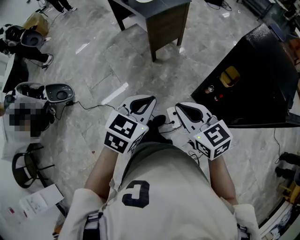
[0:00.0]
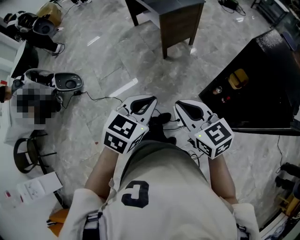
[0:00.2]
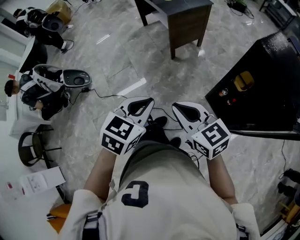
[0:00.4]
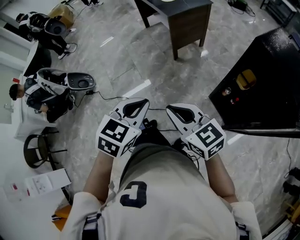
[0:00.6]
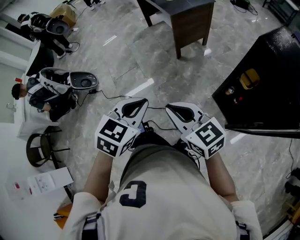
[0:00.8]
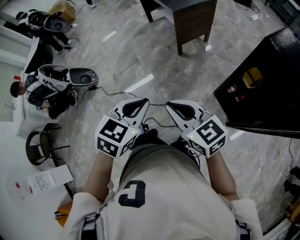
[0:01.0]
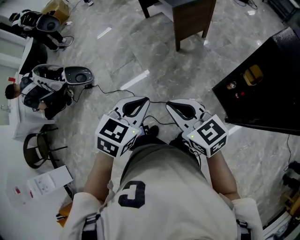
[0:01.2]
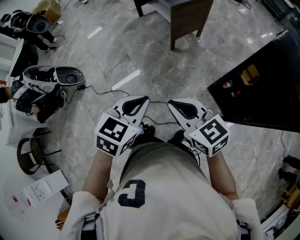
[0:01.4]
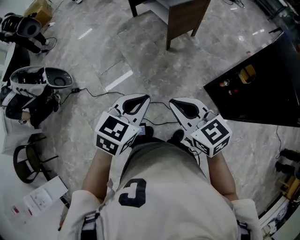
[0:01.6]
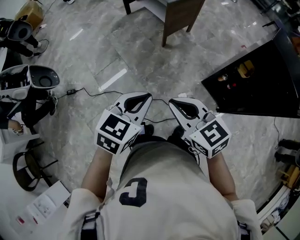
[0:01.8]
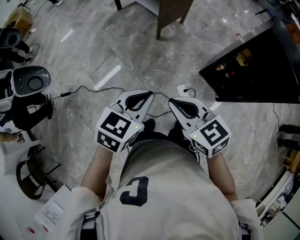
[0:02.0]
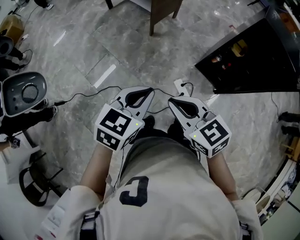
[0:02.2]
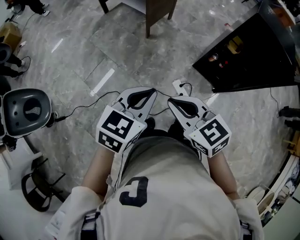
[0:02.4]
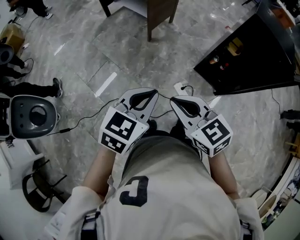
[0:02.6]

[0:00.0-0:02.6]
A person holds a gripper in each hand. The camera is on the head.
0:00.0 to 0:01.2: The two grippers go approximately 10 cm to the left.
0:01.2 to 0:02.6: Both grippers move to the left, approximately 10 cm. The left gripper changes its angle by some 30 degrees, while the right gripper turns by about 20 degrees.

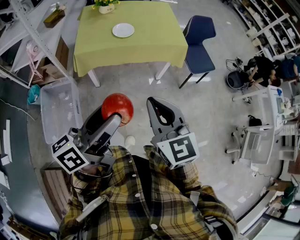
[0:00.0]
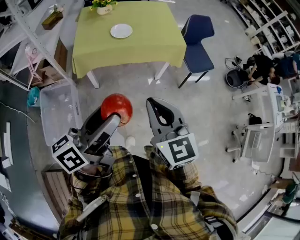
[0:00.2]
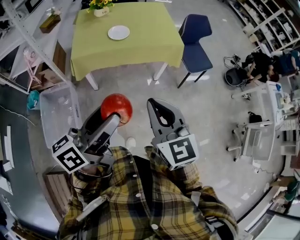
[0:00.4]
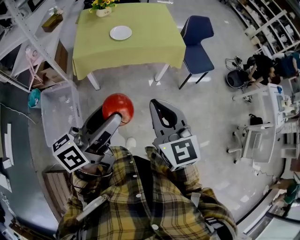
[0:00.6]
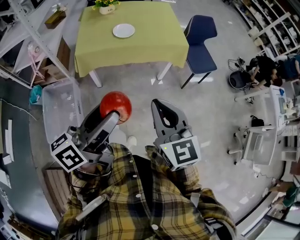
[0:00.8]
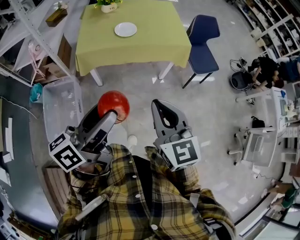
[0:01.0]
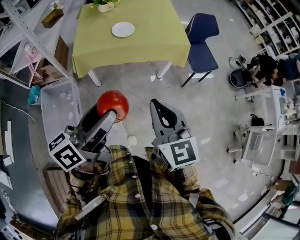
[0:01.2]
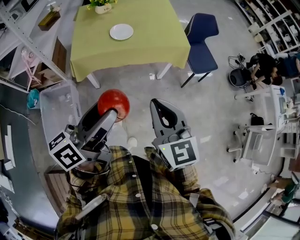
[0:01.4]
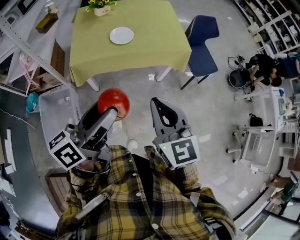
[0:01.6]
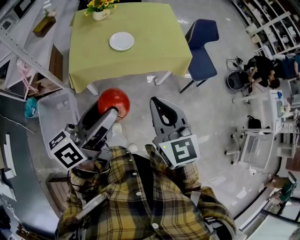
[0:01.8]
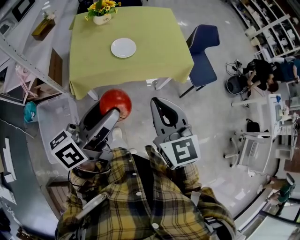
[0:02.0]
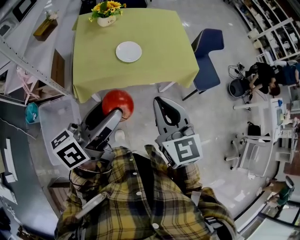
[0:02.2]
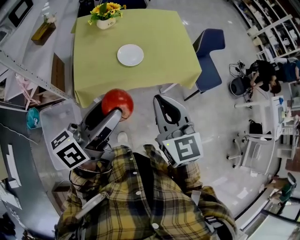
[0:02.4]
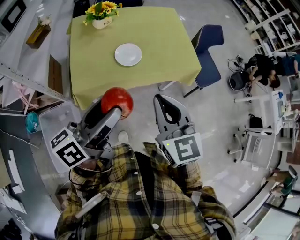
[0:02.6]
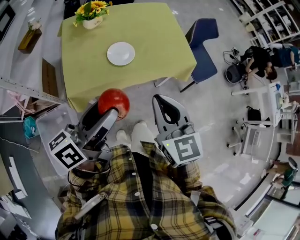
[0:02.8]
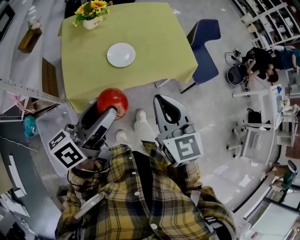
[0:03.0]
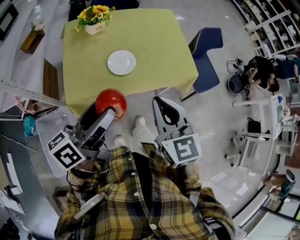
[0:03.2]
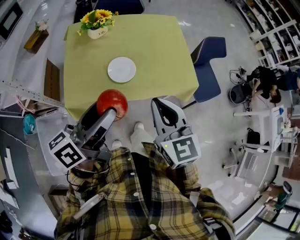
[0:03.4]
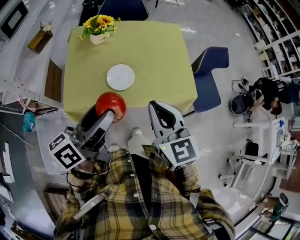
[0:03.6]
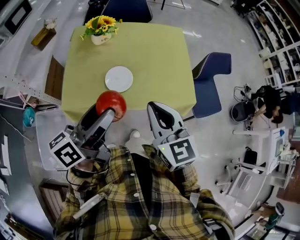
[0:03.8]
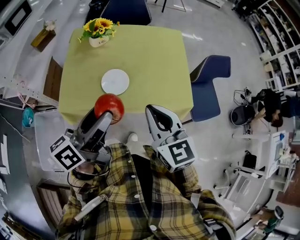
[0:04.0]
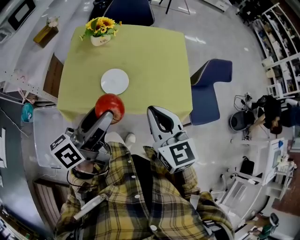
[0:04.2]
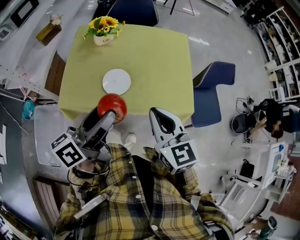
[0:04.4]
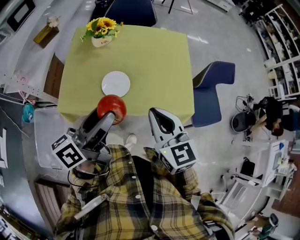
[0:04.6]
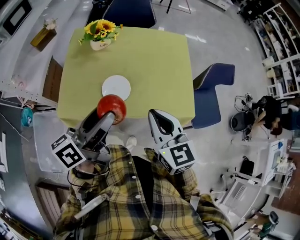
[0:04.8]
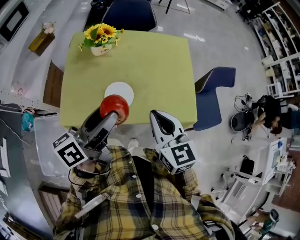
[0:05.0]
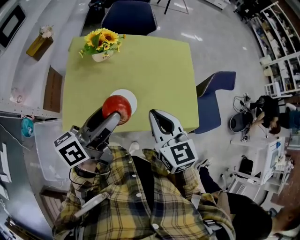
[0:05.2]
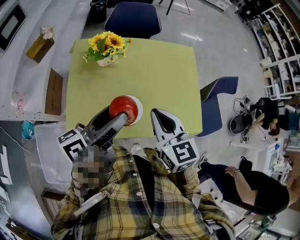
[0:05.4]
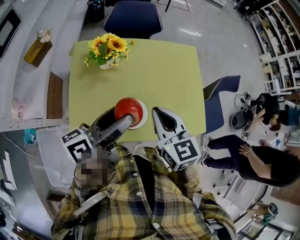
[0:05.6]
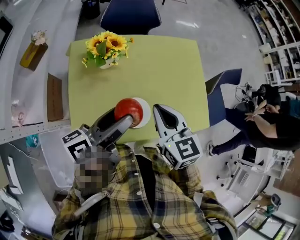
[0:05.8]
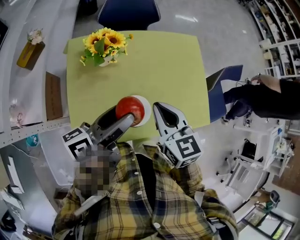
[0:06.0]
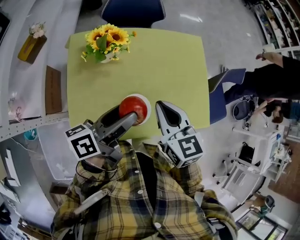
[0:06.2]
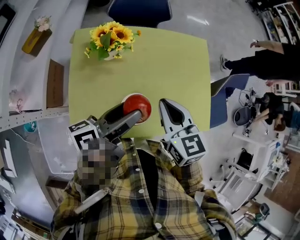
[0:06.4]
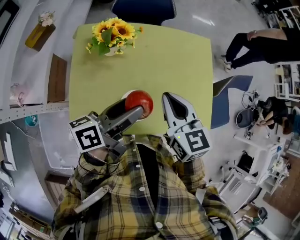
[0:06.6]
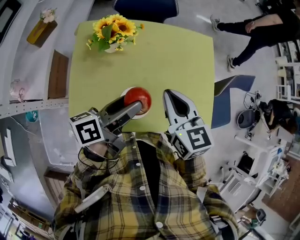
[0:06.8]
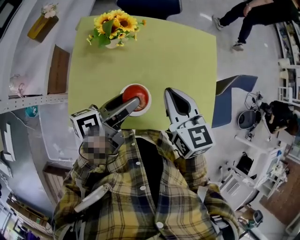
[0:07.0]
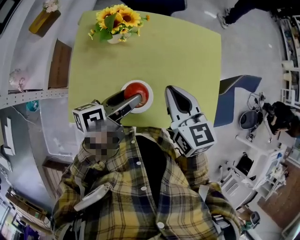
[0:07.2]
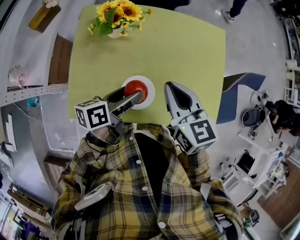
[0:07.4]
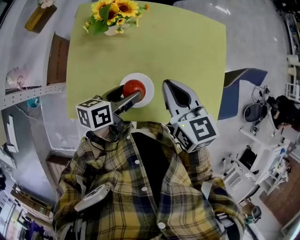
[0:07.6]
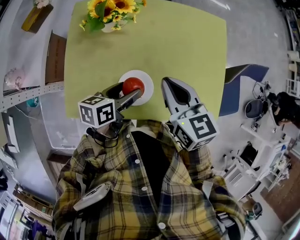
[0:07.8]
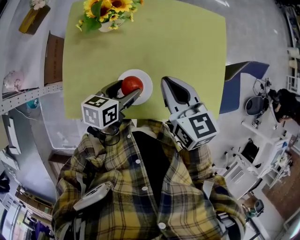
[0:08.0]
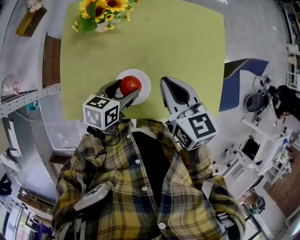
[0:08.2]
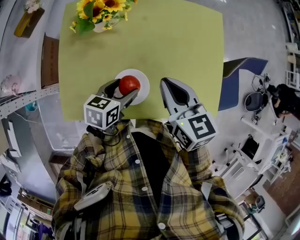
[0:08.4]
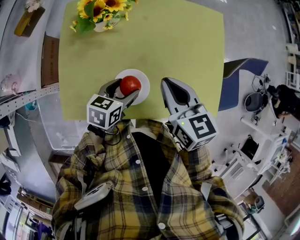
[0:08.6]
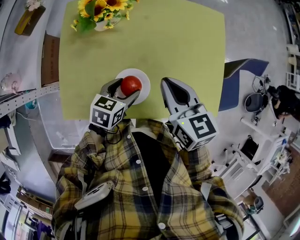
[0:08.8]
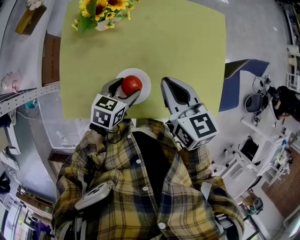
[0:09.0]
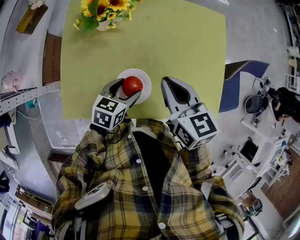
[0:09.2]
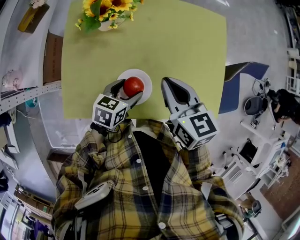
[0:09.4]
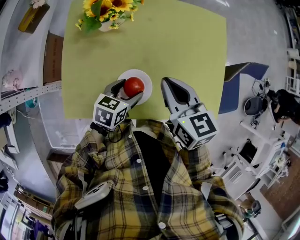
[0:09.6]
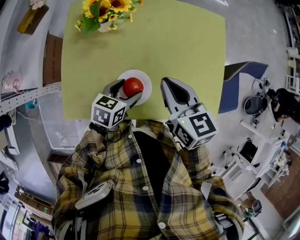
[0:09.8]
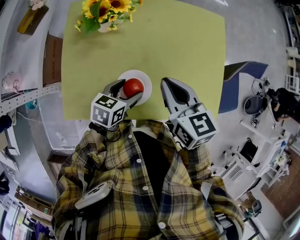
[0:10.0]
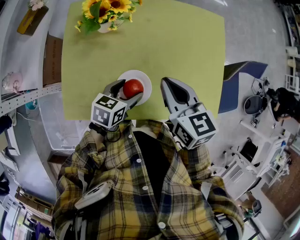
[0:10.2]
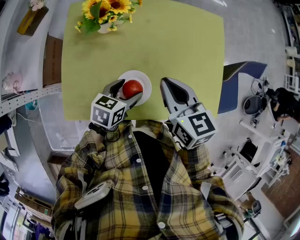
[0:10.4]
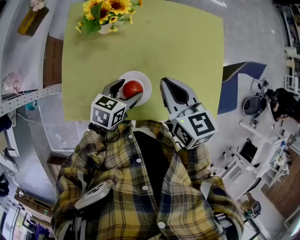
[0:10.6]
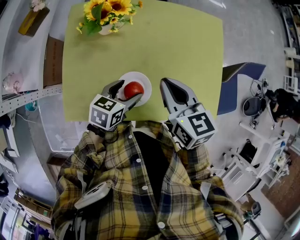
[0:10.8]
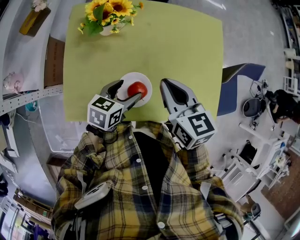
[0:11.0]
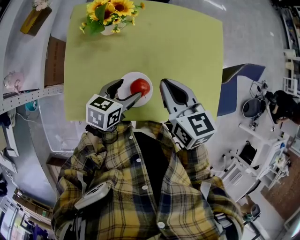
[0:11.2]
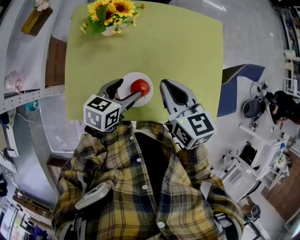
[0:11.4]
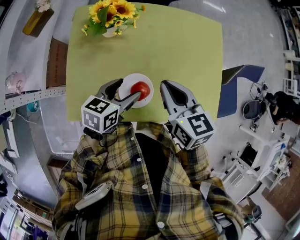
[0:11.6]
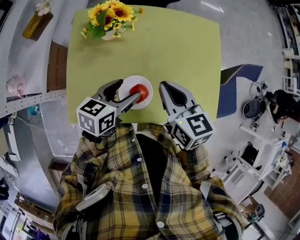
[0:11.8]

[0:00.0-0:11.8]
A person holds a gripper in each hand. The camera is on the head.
0:00.0 to 0:01.4: The two grippers go about 5 cm forward.
0:01.4 to 0:03.0: Both grippers move forward and to the left, about 25 cm.
0:03.0 to 0:04.4: Both grippers travel together forward and to the right, roughly 15 cm. The right gripper swivels roughly 20 degrees.
0:04.4 to 0:06.0: Both grippers move forward and to the left, roughly 25 cm. The left gripper turns by roughly 20 degrees.
0:06.0 to 0:07.4: The right gripper changes place by some 5 cm, while the left gripper goes approximately 15 cm downward, and changes its angle by about 20 degrees.
0:07.4 to 0:08.8: The left gripper travels downward by some 10 cm, and swivels roughly 40 degrees.
0:08.8 to 0:10.4: The grippers move only a little.
0:10.4 to 0:11.8: The left gripper travels upward by approximately 10 cm.

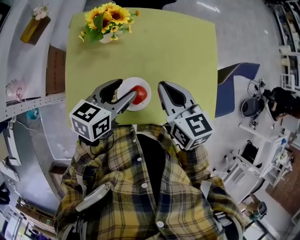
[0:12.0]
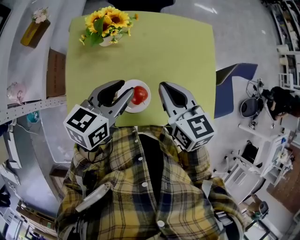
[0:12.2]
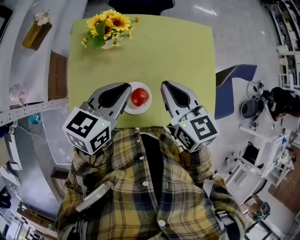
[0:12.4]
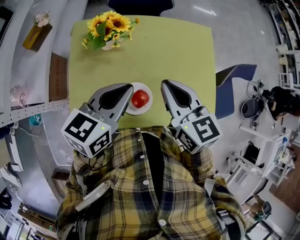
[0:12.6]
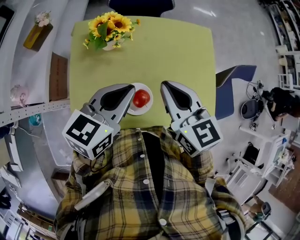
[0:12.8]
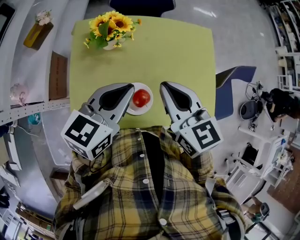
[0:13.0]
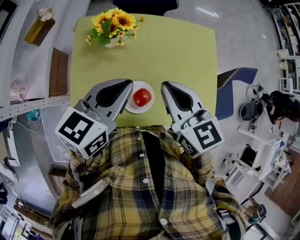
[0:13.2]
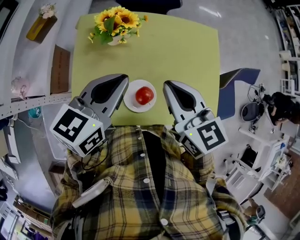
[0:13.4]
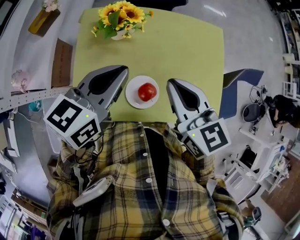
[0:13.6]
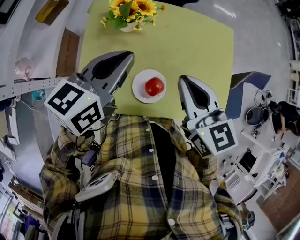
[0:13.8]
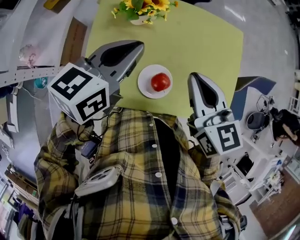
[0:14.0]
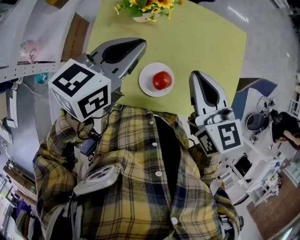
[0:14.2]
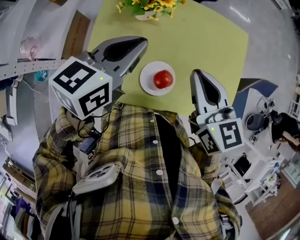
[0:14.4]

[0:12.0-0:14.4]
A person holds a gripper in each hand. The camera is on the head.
0:12.0 to 0:13.2: The left gripper heads upward, covering some 10 cm, and closes up. The right gripper moves upward, approximately 5 cm.
0:13.2 to 0:14.4: The left gripper travels to the left by approximately 5 cm.

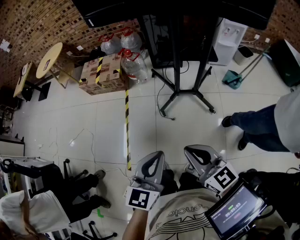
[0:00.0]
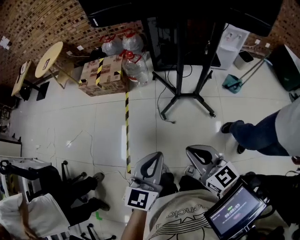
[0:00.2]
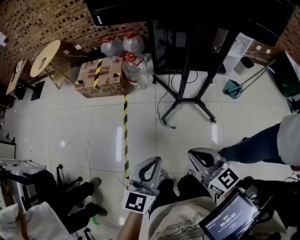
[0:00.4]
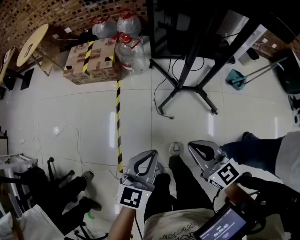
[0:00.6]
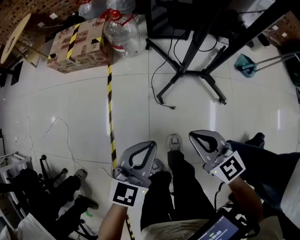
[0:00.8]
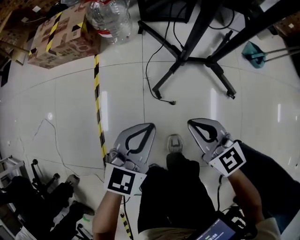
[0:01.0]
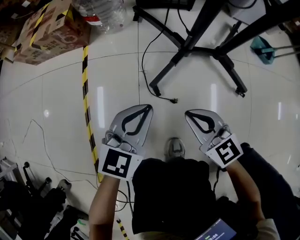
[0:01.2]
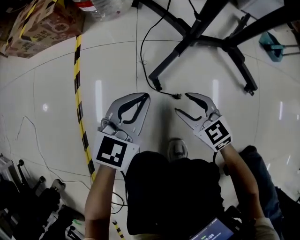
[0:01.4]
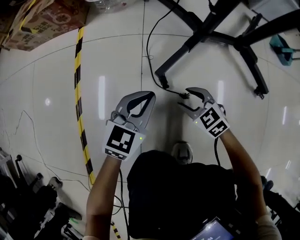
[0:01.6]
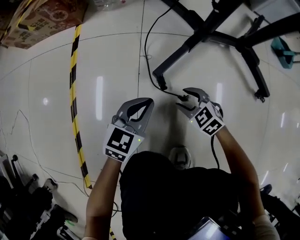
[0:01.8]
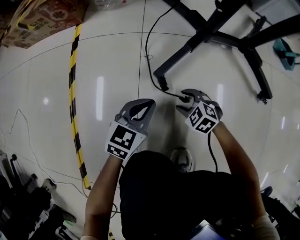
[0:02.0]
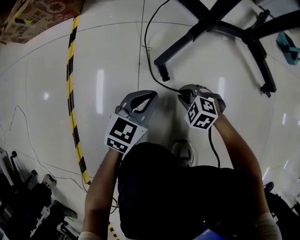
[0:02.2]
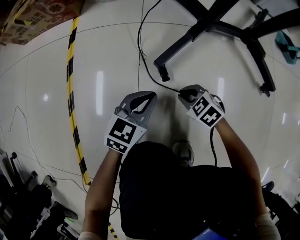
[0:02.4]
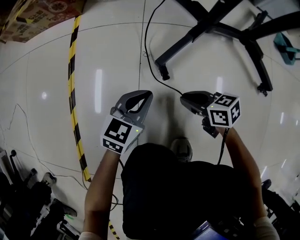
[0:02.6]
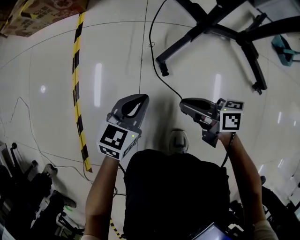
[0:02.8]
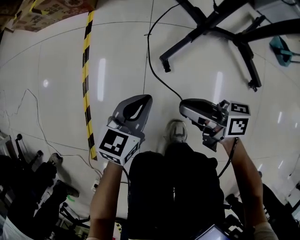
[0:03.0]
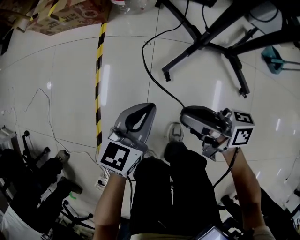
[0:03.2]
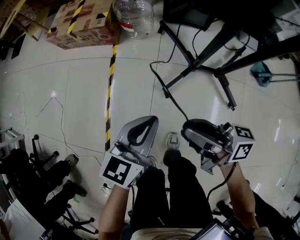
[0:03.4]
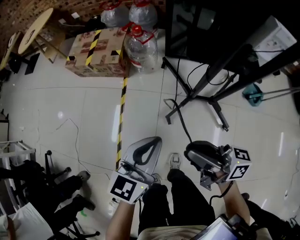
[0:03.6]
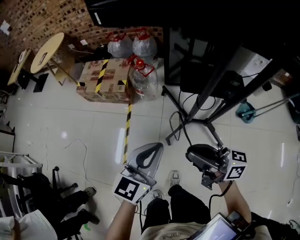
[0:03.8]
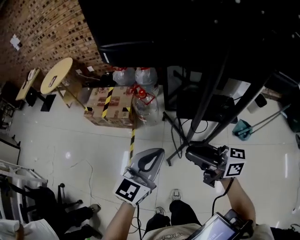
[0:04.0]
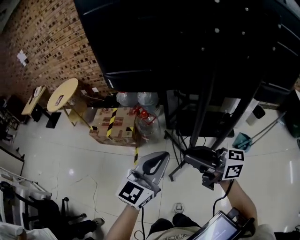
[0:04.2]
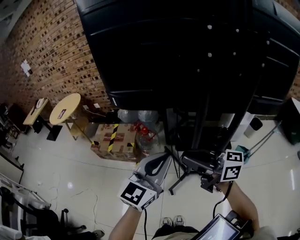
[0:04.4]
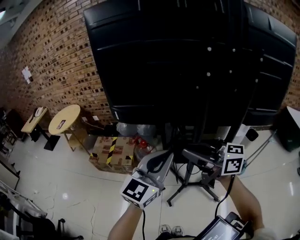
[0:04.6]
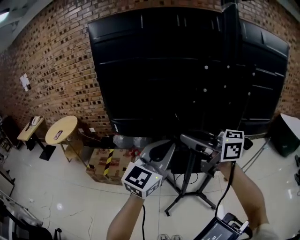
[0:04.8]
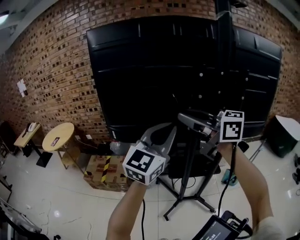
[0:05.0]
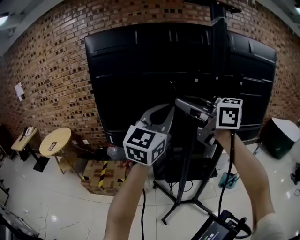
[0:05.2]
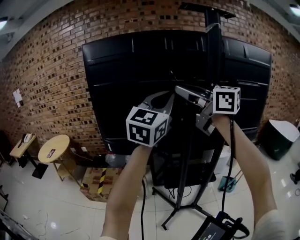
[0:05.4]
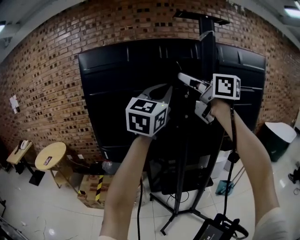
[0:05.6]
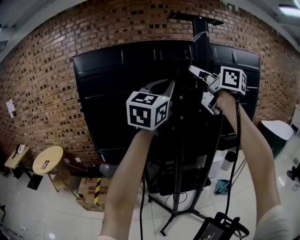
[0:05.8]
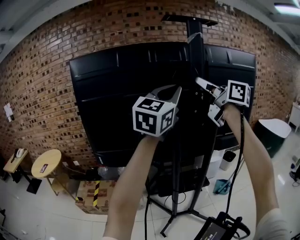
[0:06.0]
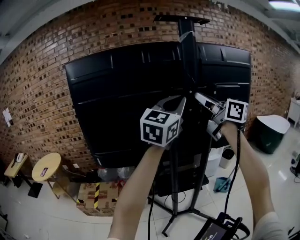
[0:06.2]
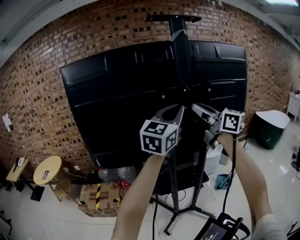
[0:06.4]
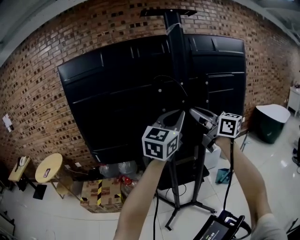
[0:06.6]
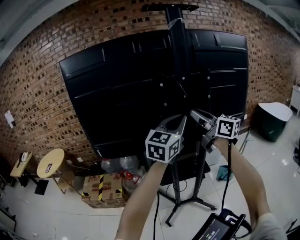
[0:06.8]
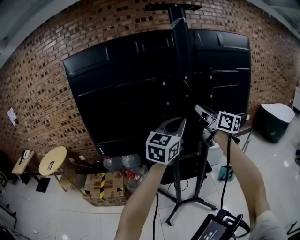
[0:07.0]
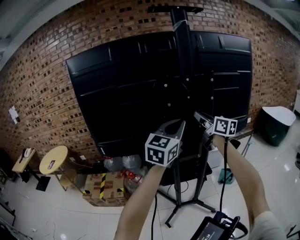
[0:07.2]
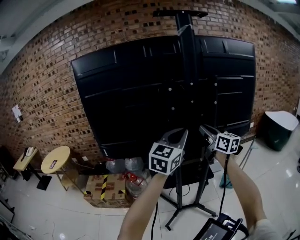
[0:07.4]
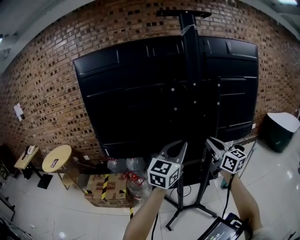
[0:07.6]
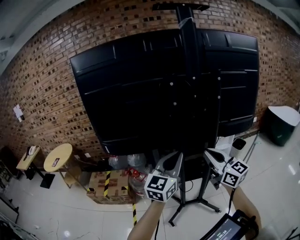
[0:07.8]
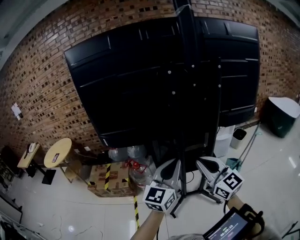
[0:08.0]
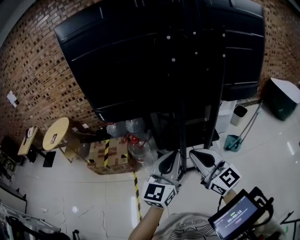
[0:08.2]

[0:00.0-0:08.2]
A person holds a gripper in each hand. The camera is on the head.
0:00.0 to 0:01.6: The right gripper heads downward, covering about 80 cm, angles its fingers downward, by approximately 40 degrees, and opens. Meanwhile the left gripper moves downward and forward, roughly 80 cm, and turns by some 20 degrees.
0:01.6 to 0:03.2: The left gripper travels upward by approximately 25 cm, and rotates approximately 20 degrees. The right gripper travels upward by roughly 35 cm, points its fingers roughly 50 degrees further upward, and closes.
0:03.2 to 0:05.0: The grippers both shift upward by approximately 80 cm. The right gripper rolls counterclockwise, seen from behind, by roughly 60 degrees. The left gripper tips its fingers upward by about 40 degrees.
0:05.0 to 0:06.6: The grippers both shift to the right by some 20 cm. The right gripper swivels some 30 degrees.
0:06.6 to 0:08.2: The left gripper travels downward, backward and to the left by approximately 30 cm, and changes its angle by about 20 degrees. The right gripper goes some 30 cm downward and backward.
